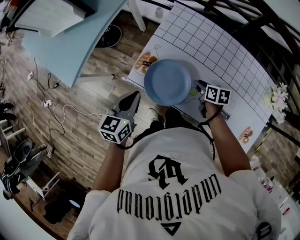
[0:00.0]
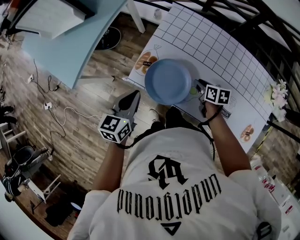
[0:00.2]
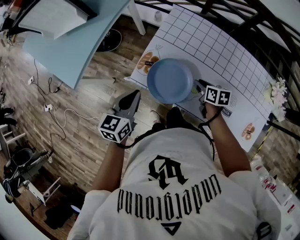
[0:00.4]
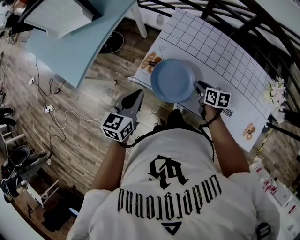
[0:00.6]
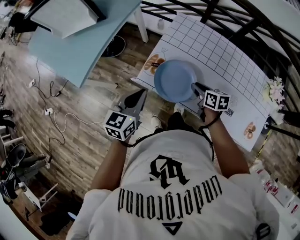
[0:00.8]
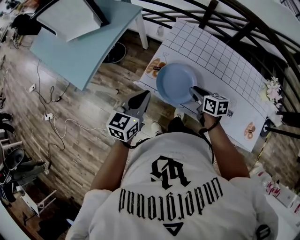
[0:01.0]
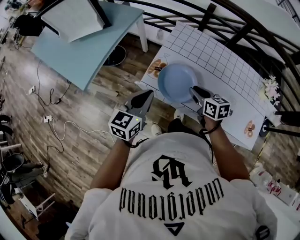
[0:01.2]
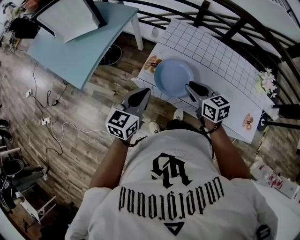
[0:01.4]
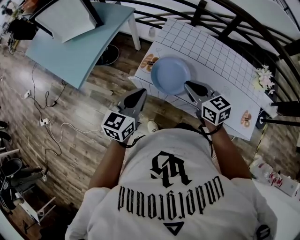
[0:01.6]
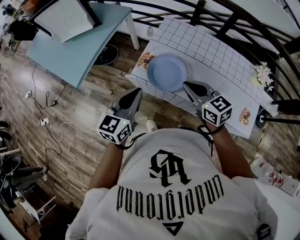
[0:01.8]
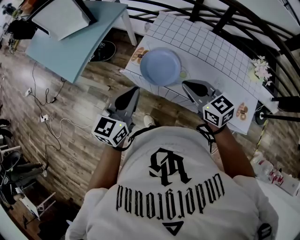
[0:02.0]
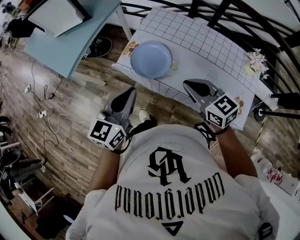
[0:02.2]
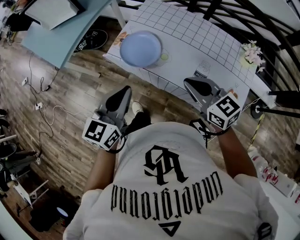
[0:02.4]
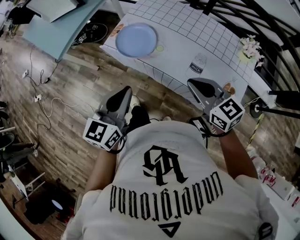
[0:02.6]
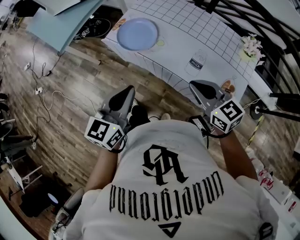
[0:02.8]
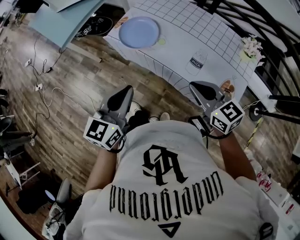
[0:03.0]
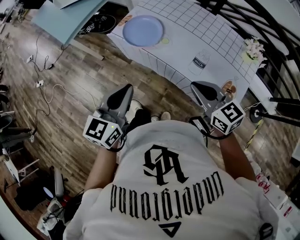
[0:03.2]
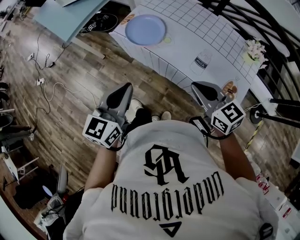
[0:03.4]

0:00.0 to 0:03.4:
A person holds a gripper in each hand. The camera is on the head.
0:00.0 to 0:01.6: The right gripper heads upward, to the left and backward, covering about 30 cm, and changes its angle by approximately 40 degrees. The left gripper shifts approximately 15 cm backward and upward.
0:01.6 to 0:03.4: Both grippers move backward and to the right, roughly 30 cm.

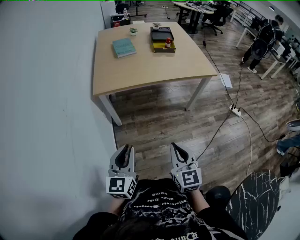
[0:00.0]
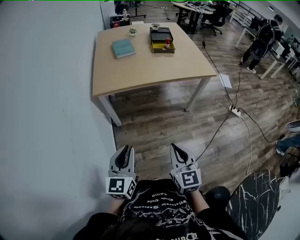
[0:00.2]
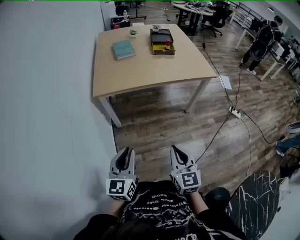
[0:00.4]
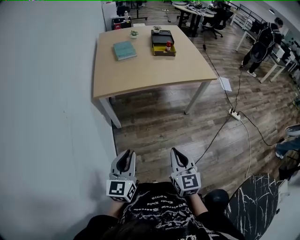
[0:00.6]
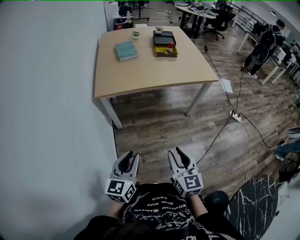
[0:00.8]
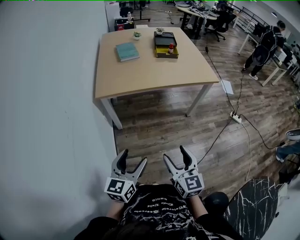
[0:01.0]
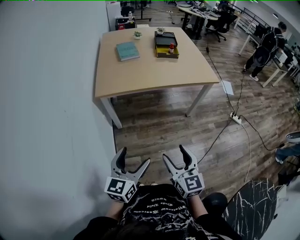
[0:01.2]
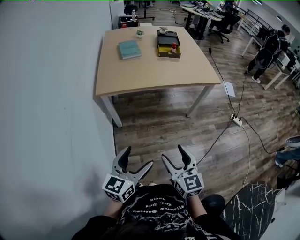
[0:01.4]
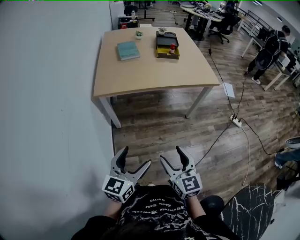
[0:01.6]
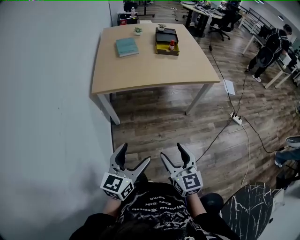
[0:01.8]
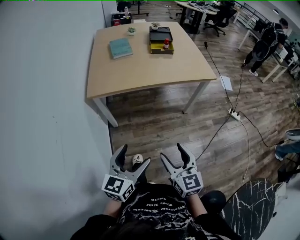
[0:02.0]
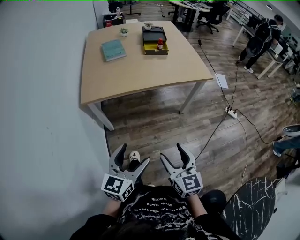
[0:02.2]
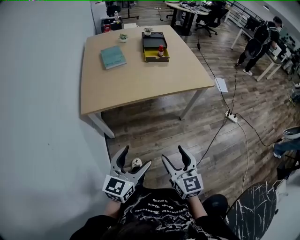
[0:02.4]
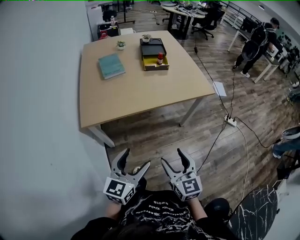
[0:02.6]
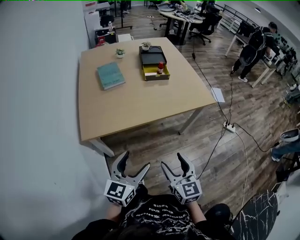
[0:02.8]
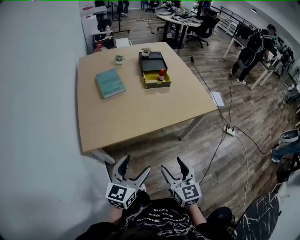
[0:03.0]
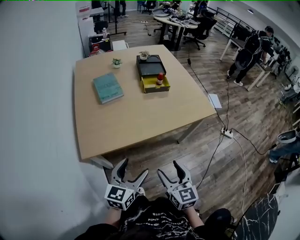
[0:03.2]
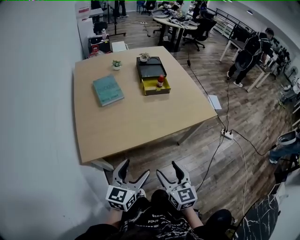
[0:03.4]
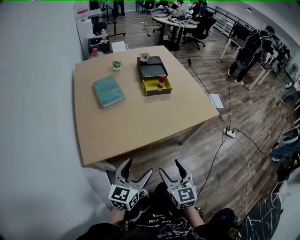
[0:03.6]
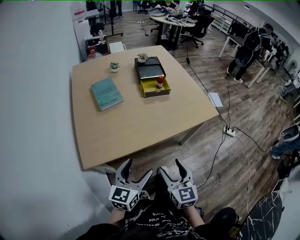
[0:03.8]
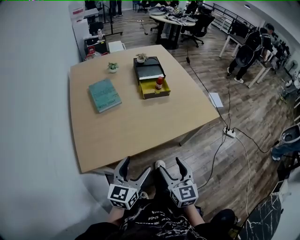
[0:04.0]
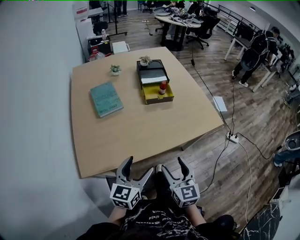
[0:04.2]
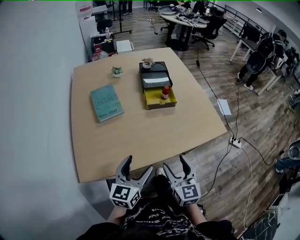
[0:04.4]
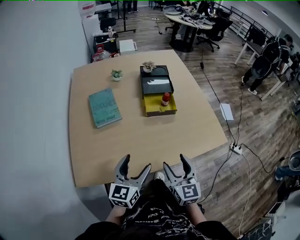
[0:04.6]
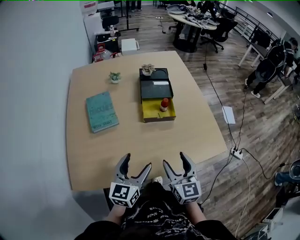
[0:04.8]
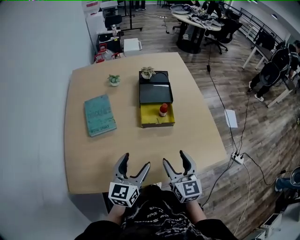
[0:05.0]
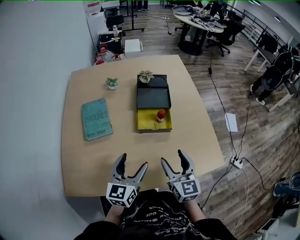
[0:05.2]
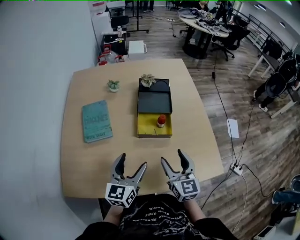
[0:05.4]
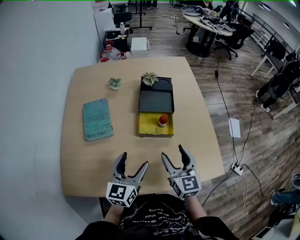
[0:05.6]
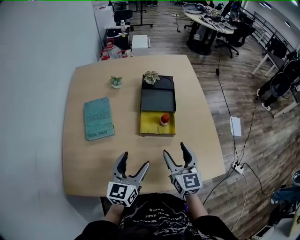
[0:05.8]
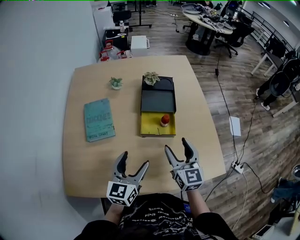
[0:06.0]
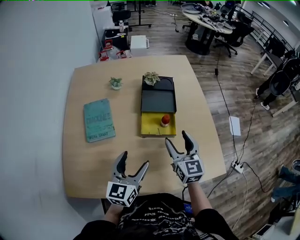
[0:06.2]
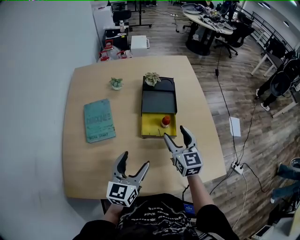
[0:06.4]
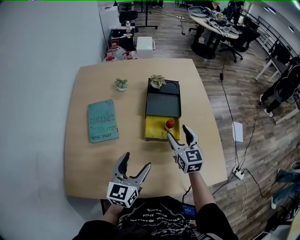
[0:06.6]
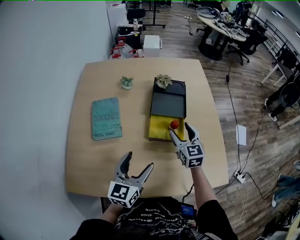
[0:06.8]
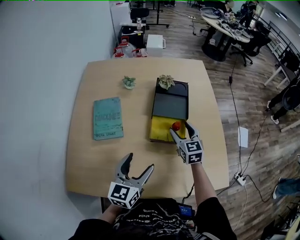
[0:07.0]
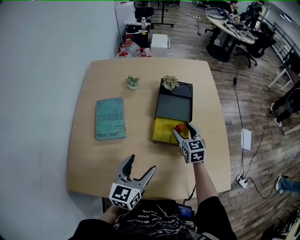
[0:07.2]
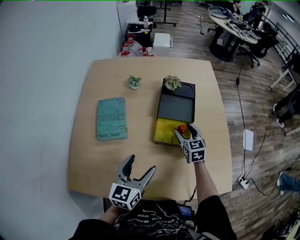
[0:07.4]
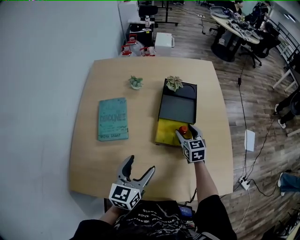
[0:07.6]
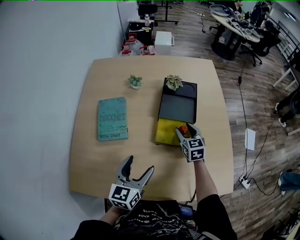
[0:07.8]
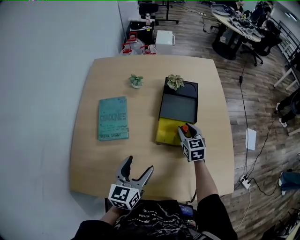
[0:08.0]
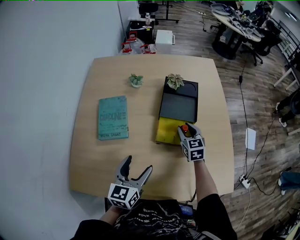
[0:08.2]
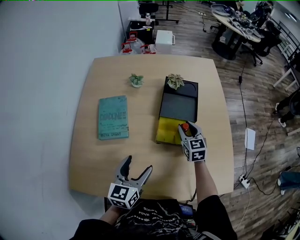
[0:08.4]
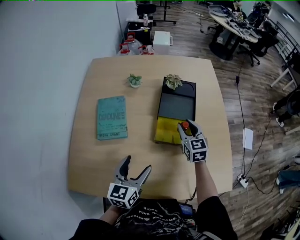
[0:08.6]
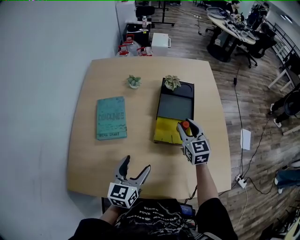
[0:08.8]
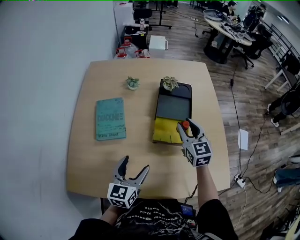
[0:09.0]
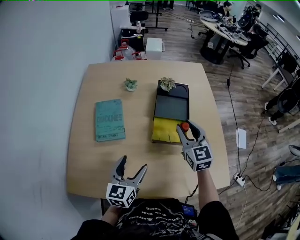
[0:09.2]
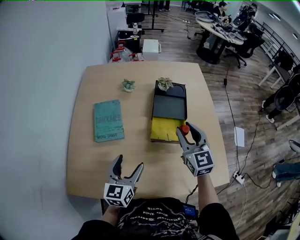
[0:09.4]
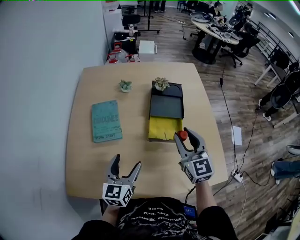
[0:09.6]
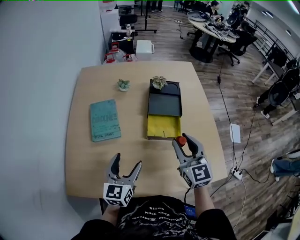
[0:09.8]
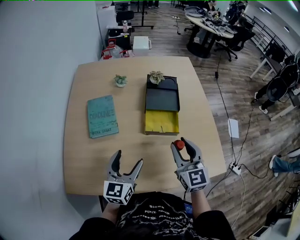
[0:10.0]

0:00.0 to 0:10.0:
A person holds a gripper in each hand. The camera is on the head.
0:00.0 to 0:01.4: The left gripper heads to the right, covering about 5 cm, and opens its fingers; the right gripper opens up.
0:01.4 to 0:02.8: Both grippers travel together forward, some 25 cm.
0:02.8 to 0:04.2: The two grippers go approximately 20 cm forward.
0:04.2 to 0:05.8: Both grippers travel together forward, about 30 cm.
0:05.8 to 0:07.2: The right gripper moves forward and downward, some 20 cm.
0:07.2 to 0:08.6: The right gripper closes.
0:08.6 to 0:10.0: The right gripper is displaced backward and upward by roughly 20 cm, while the left gripper shifts by roughly 5 cm.

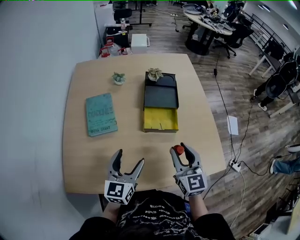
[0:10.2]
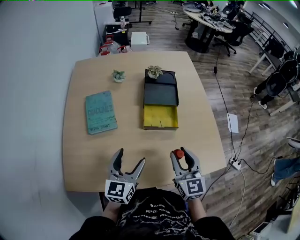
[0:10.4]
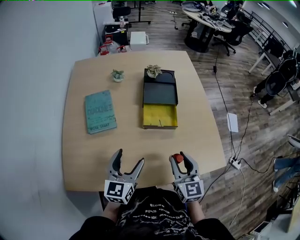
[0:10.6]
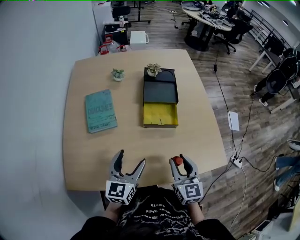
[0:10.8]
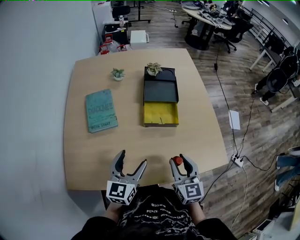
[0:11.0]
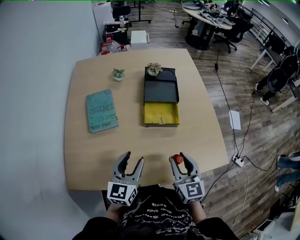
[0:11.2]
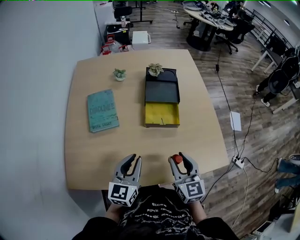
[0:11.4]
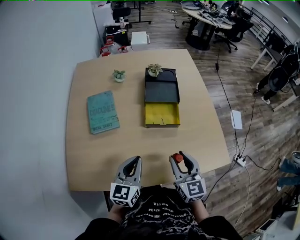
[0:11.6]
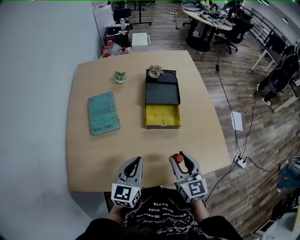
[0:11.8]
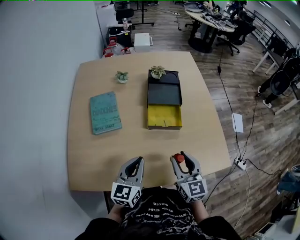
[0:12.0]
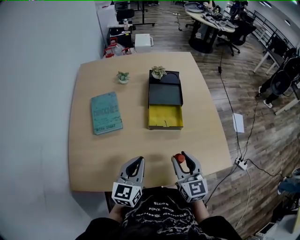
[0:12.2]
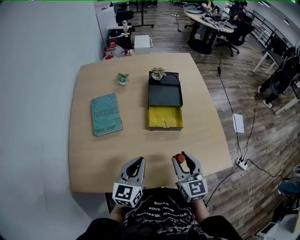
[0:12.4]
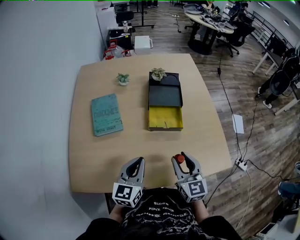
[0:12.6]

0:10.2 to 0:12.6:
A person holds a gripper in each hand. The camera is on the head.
0:10.2 to 0:11.4: The right gripper shifts some 5 cm backward. The left gripper closes up.
0:11.4 to 0:12.6: Neither gripper changes place.

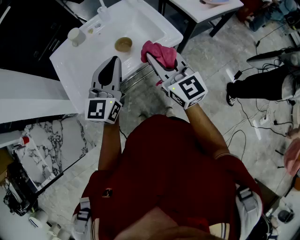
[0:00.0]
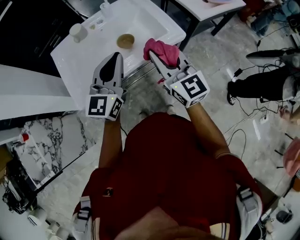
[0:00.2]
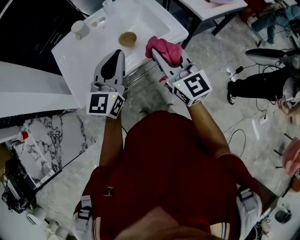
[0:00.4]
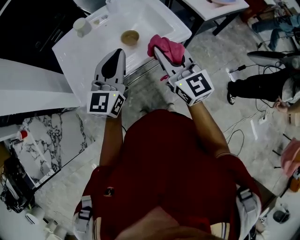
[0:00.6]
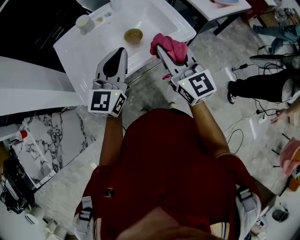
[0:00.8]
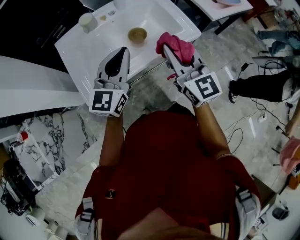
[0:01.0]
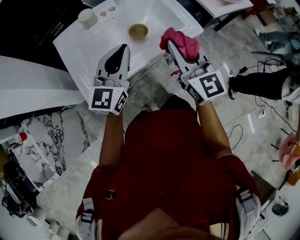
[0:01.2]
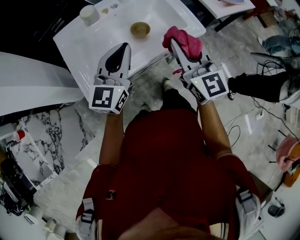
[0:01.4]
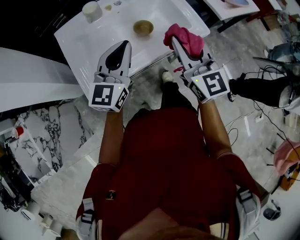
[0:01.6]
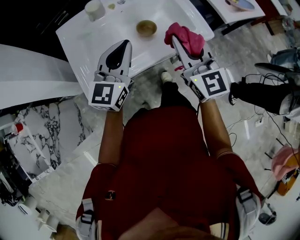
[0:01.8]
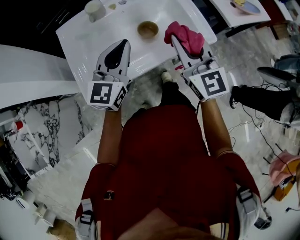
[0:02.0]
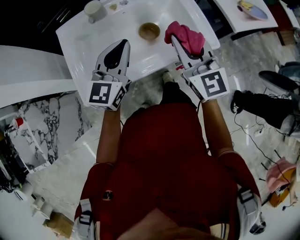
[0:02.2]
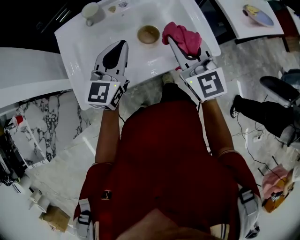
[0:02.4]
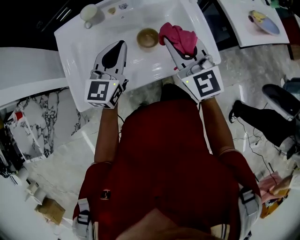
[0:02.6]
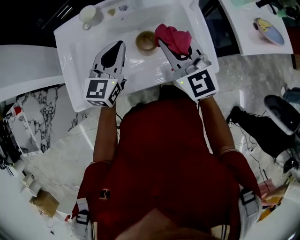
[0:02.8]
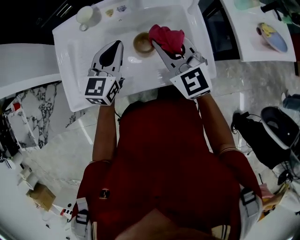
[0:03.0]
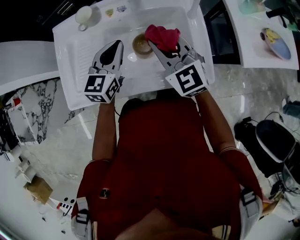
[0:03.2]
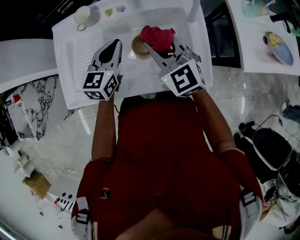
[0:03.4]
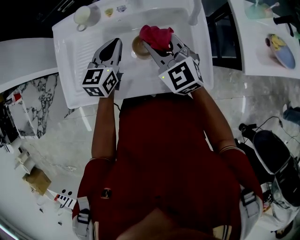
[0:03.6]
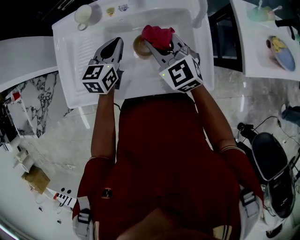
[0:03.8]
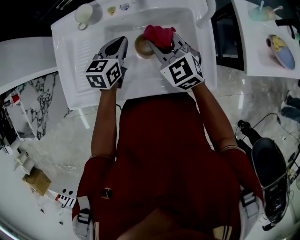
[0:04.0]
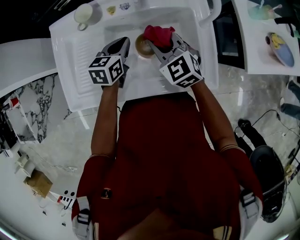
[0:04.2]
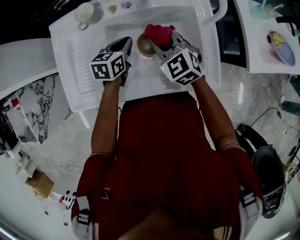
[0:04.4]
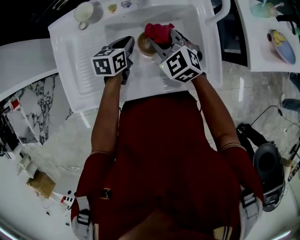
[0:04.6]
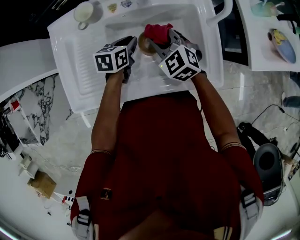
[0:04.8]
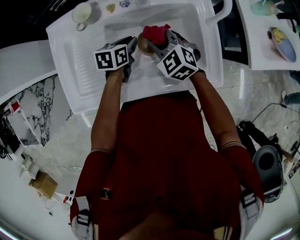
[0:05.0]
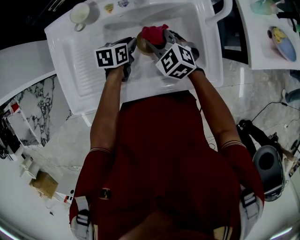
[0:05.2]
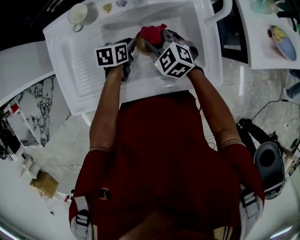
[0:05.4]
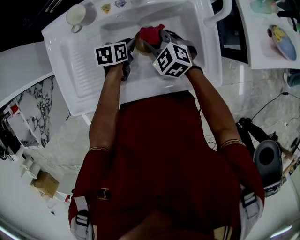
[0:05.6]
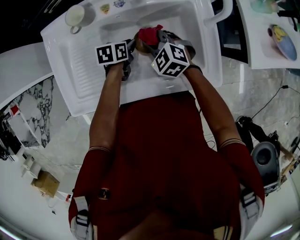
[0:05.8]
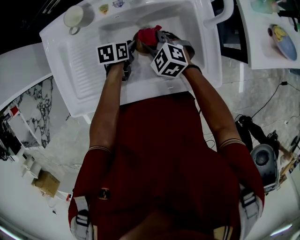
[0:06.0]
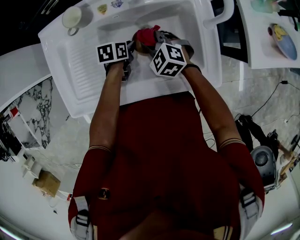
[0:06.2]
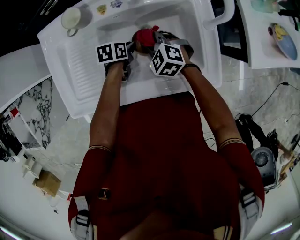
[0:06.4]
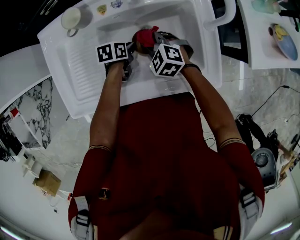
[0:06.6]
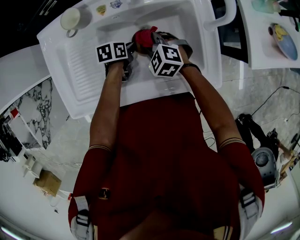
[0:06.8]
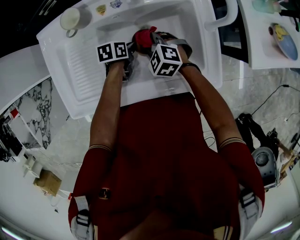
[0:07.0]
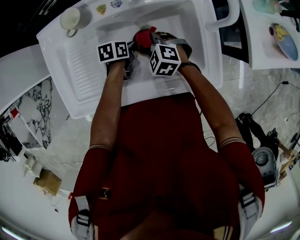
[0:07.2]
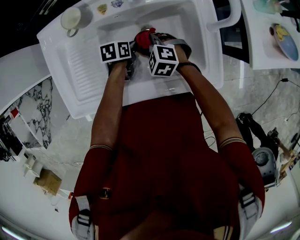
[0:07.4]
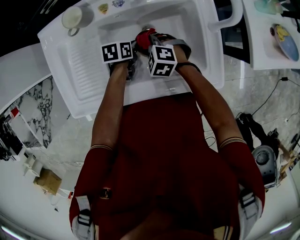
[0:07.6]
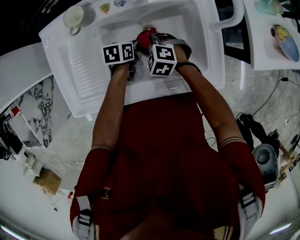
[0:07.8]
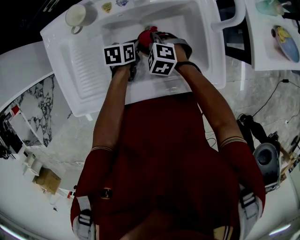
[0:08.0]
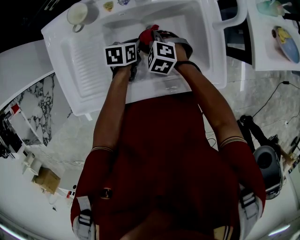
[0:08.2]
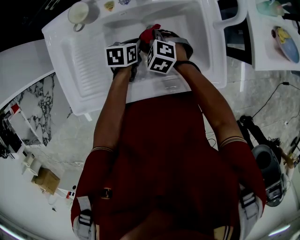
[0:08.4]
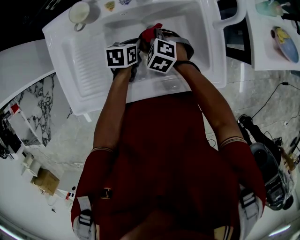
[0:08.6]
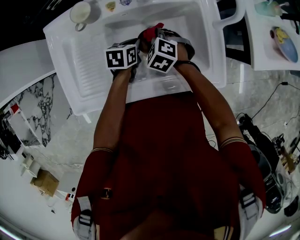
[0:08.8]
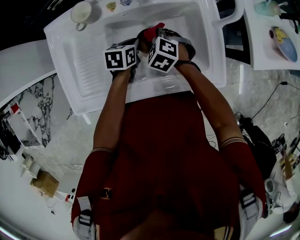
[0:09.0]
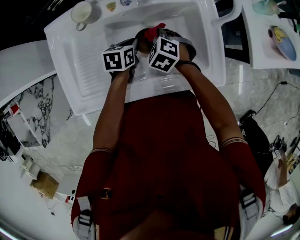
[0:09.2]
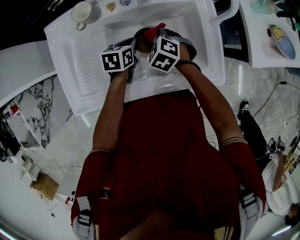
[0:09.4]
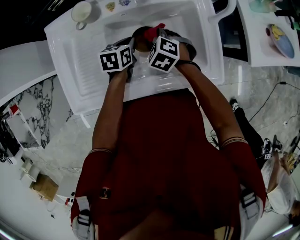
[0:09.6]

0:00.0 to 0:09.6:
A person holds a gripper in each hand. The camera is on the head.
0:00.0 to 0:01.6: The grippers both shift to the left by some 10 cm.
0:01.6 to 0:03.2: The right gripper shifts by roughly 25 cm, and rotates some 40 degrees, while the left gripper shifts by some 20 cm, and changes its angle by approximately 30 degrees.
0:03.2 to 0:04.8: The left gripper goes some 15 cm downward, and swivels roughly 40 degrees. Meanwhile the right gripper shifts approximately 15 cm downward and forward, and swivels some 20 degrees.
0:04.8 to 0:06.4: The two grippers go some 10 cm downward. The left gripper swivels approximately 20 degrees.
0:06.4 to 0:08.0: There are only small adjustments of the grippers.
0:08.0 to 0:09.6: The left gripper shifts some 5 cm upward.
